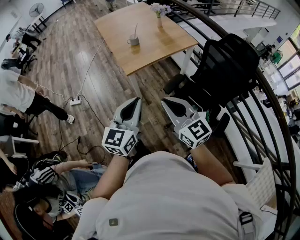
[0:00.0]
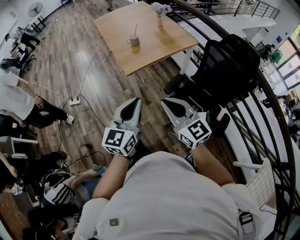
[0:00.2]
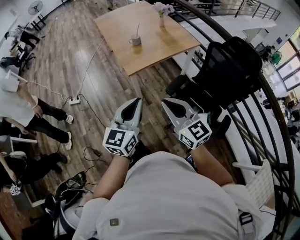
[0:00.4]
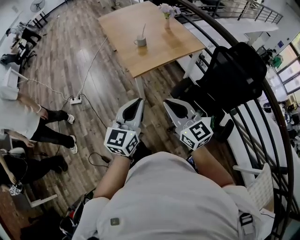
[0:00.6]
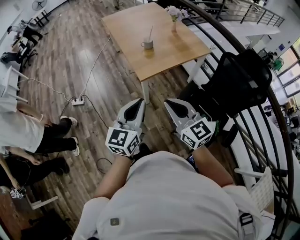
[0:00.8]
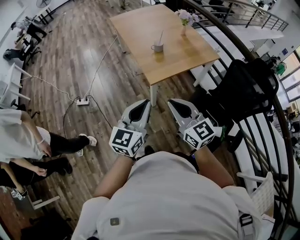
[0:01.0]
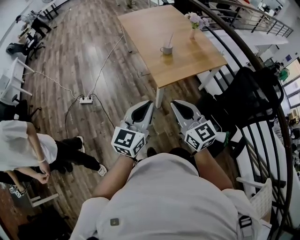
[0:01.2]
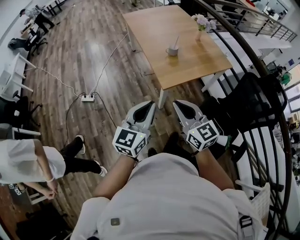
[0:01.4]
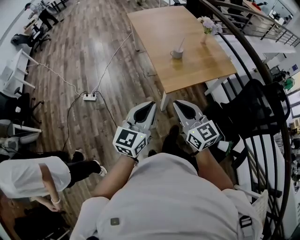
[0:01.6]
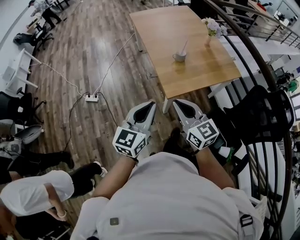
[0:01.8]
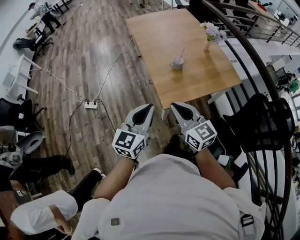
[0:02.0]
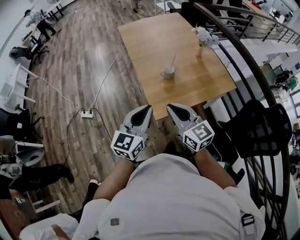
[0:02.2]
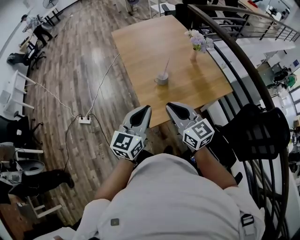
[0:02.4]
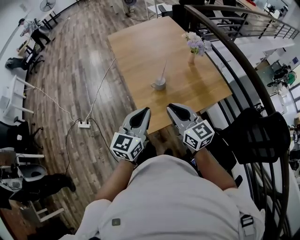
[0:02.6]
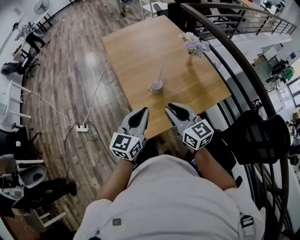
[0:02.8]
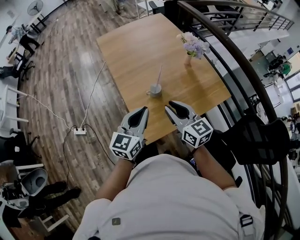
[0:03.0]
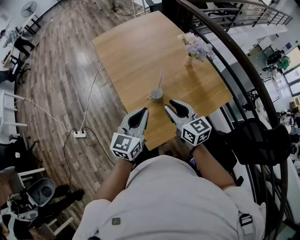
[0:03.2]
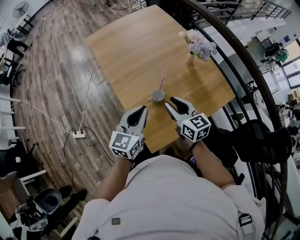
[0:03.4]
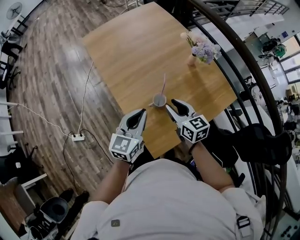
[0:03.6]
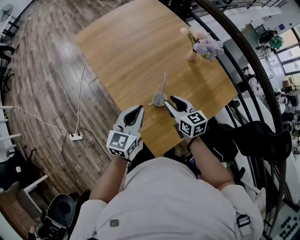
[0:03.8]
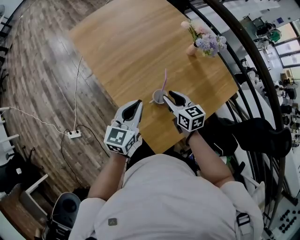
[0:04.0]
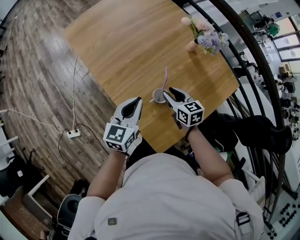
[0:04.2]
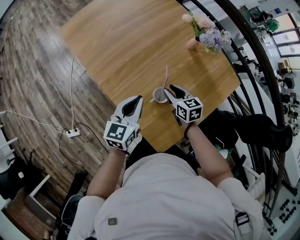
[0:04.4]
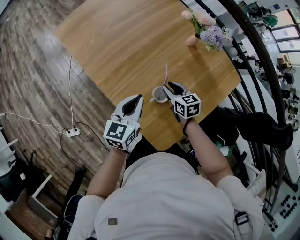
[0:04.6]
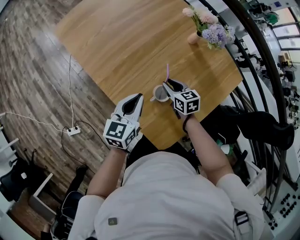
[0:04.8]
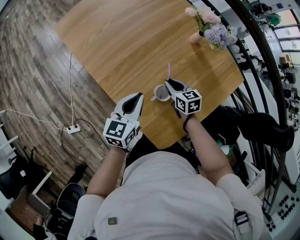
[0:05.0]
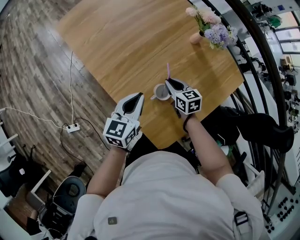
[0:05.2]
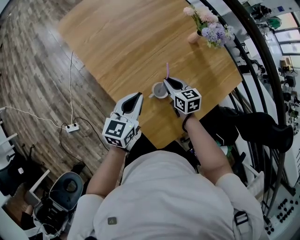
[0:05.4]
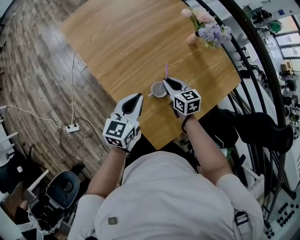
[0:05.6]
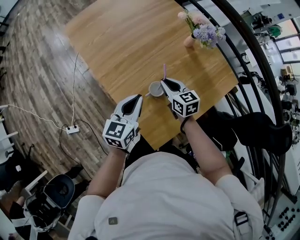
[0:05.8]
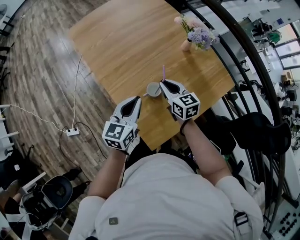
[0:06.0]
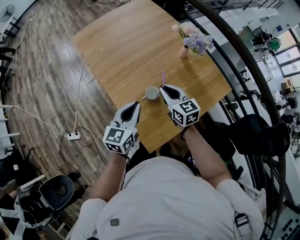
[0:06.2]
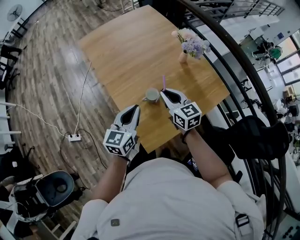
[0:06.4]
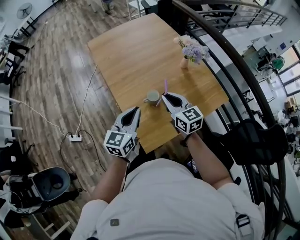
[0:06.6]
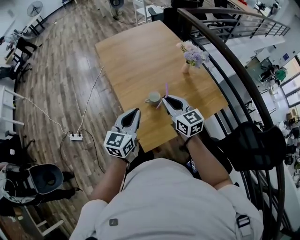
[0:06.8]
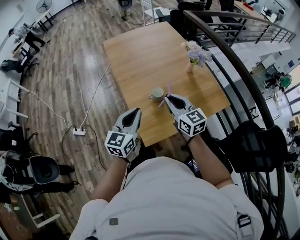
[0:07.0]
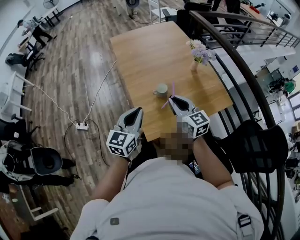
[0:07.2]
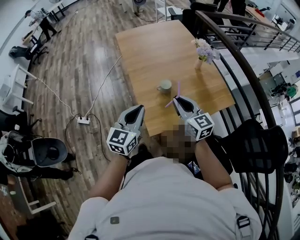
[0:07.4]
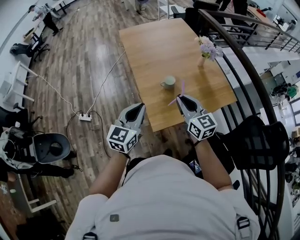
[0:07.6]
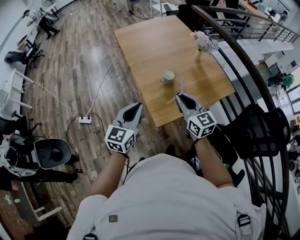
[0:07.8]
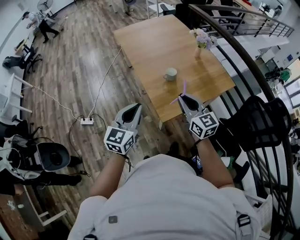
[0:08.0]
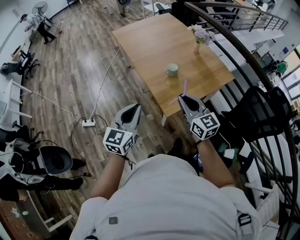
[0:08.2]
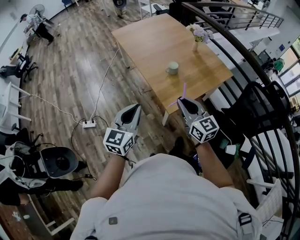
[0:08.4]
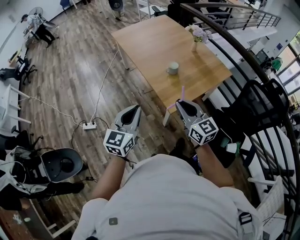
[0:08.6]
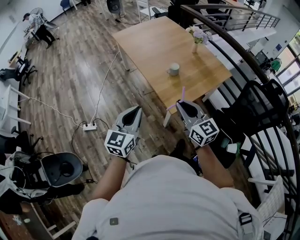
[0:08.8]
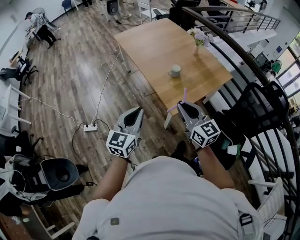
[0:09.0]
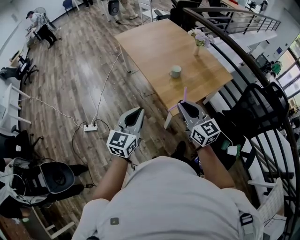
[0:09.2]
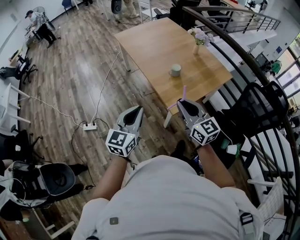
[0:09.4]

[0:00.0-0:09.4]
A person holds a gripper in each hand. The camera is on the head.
0:00.0 to 0:01.6: The two grippers go approximately 30 cm forward and to the left.
0:01.6 to 0:03.2: Both grippers are carried forward, approximately 50 cm. The right gripper opens up.
0:03.2 to 0:04.8: The right gripper goes approximately 35 cm downward and forward, and rotates roughly 30 degrees; the left gripper moves forward and downward, roughly 25 cm, and changes its angle by some 20 degrees.
0:04.8 to 0:06.2: The left gripper goes about 15 cm backward and upward; the right gripper travels upward and backward by roughly 20 cm, and rotates roughly 20 degrees.
0:06.2 to 0:07.8: The left gripper goes roughly 30 cm backward; the right gripper heads backward and upward, covering about 30 cm.
0:07.8 to 0:09.4: The right gripper travels backward and to the left by roughly 20 cm; the left gripper heads to the left and backward, covering approximately 15 cm.

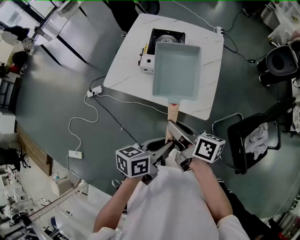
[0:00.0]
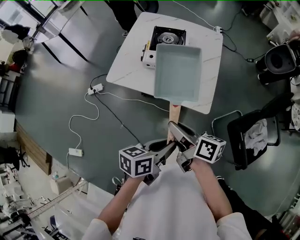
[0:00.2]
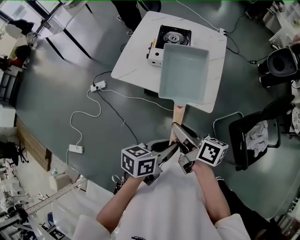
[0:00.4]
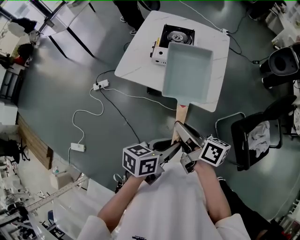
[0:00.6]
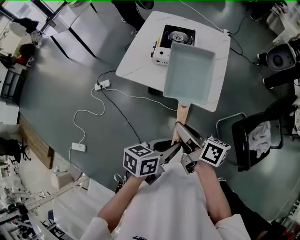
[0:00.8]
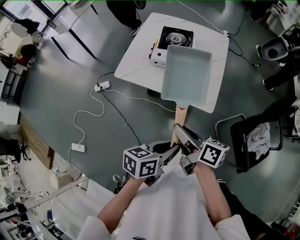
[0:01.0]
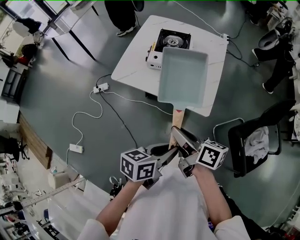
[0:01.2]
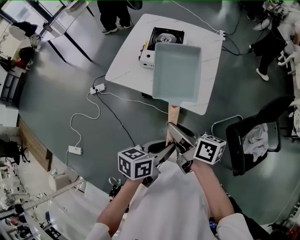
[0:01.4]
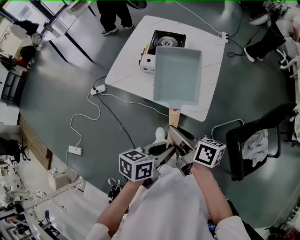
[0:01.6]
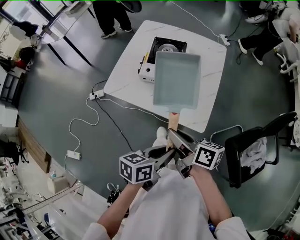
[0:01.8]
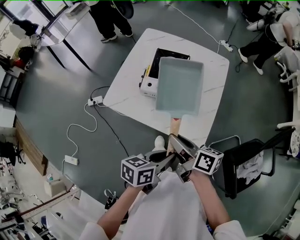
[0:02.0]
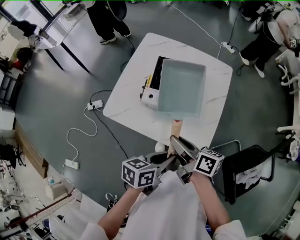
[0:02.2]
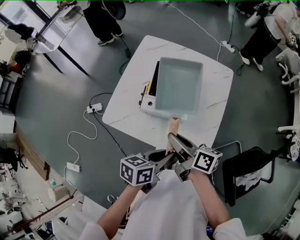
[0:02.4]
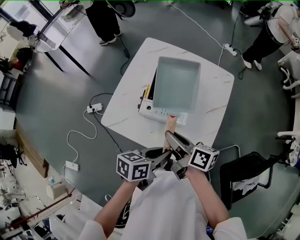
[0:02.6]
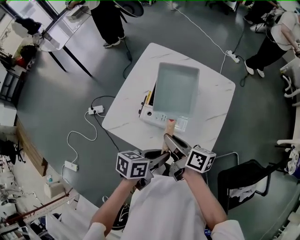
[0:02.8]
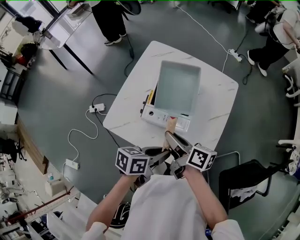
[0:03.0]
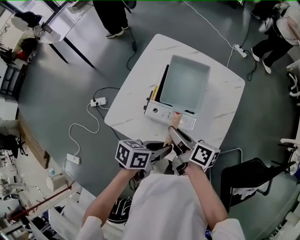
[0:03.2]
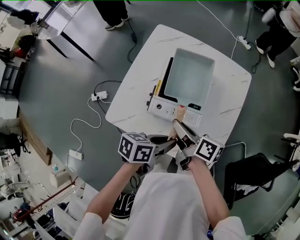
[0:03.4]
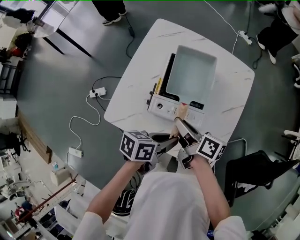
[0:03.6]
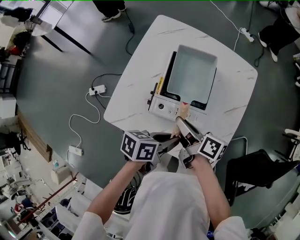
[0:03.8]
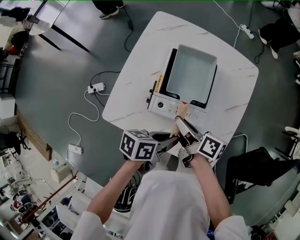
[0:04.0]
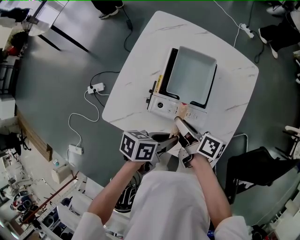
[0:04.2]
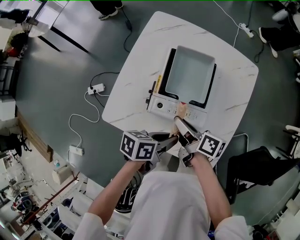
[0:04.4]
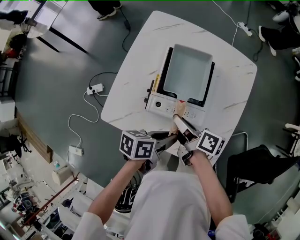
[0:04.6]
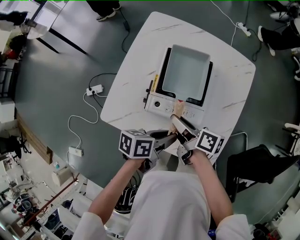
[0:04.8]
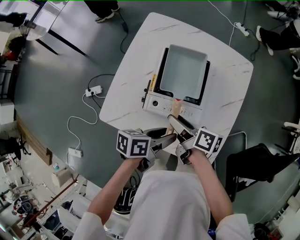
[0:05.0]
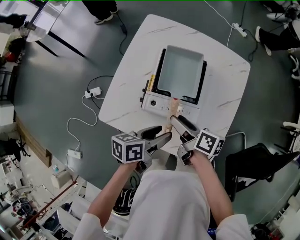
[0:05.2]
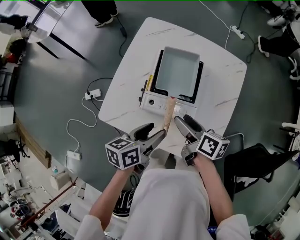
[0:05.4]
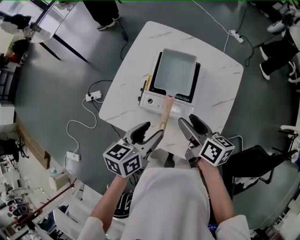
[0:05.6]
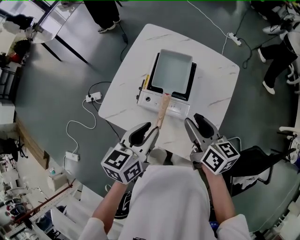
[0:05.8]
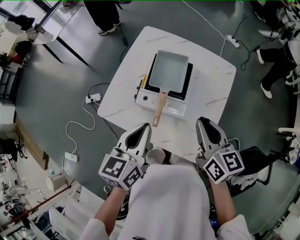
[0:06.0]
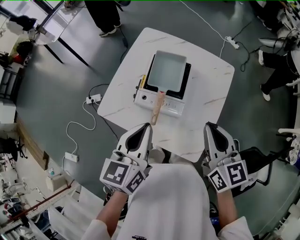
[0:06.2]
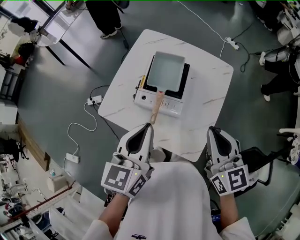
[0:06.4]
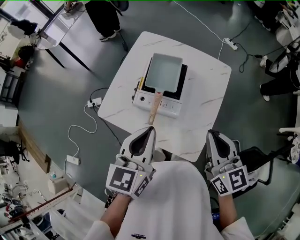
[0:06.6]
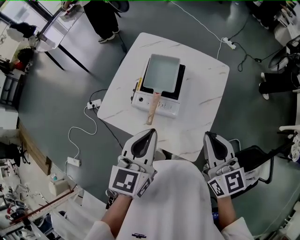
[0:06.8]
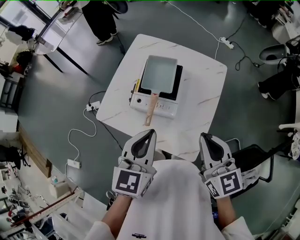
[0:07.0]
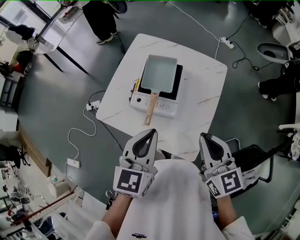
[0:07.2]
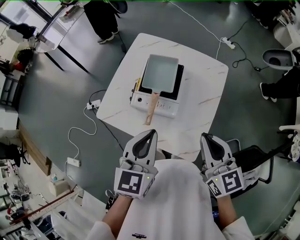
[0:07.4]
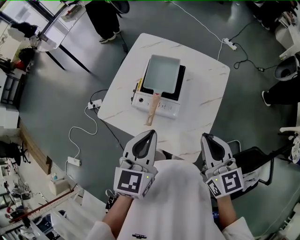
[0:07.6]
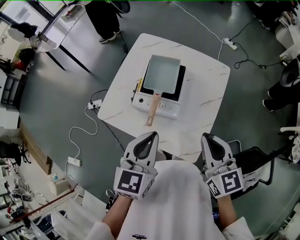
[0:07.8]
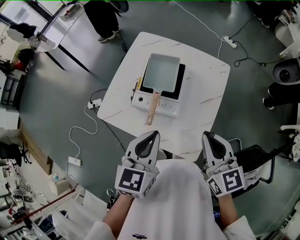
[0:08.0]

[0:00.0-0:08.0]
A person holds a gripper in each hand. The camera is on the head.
0:01.6 to 0:03.2: Both grippers move forward, roughly 30 cm.
0:03.2 to 0:04.8: Both grippers move downward, roughly 10 cm.
0:04.8 to 0:06.4: The left gripper travels upward by roughly 25 cm, turns by about 60 degrees, and closes its fingers. Meanwhile the right gripper heads upward, to the right and backward, covering some 30 cm, twists roughly 60 degrees counterclockwise, seen from behind, and closes up.
0:06.4 to 0:08.0: The left gripper ends up about 5 cm from where it was.

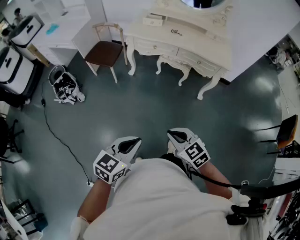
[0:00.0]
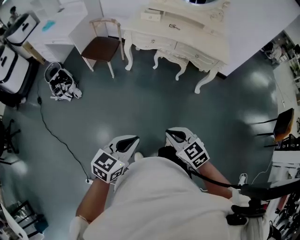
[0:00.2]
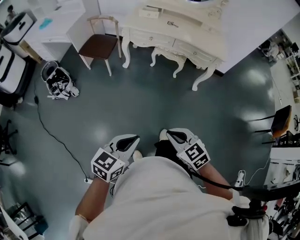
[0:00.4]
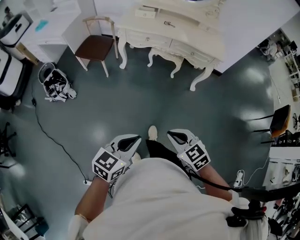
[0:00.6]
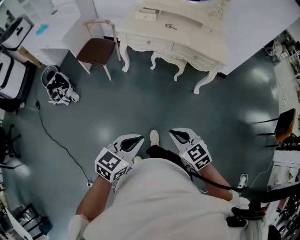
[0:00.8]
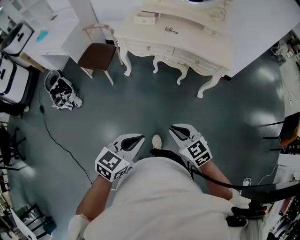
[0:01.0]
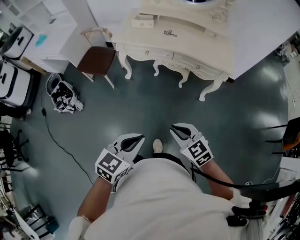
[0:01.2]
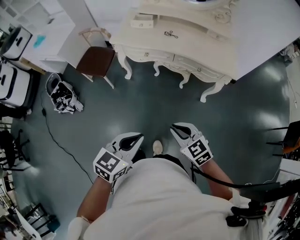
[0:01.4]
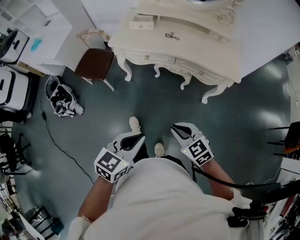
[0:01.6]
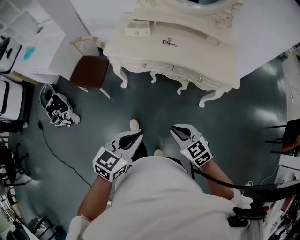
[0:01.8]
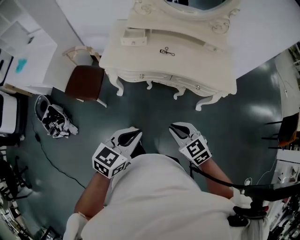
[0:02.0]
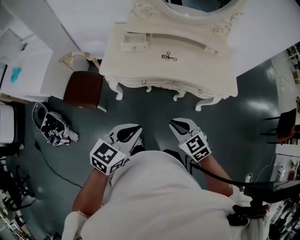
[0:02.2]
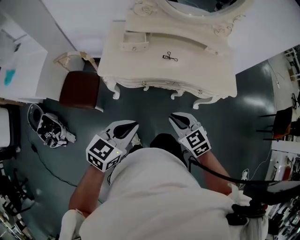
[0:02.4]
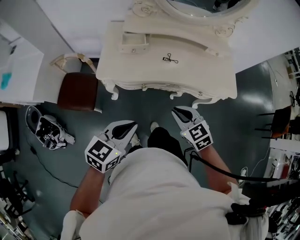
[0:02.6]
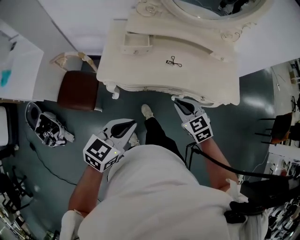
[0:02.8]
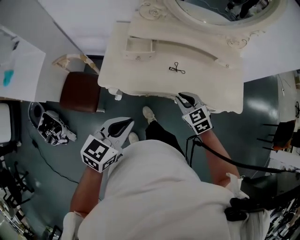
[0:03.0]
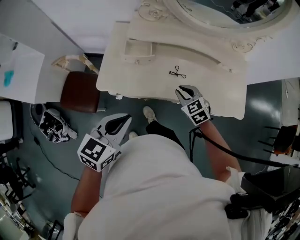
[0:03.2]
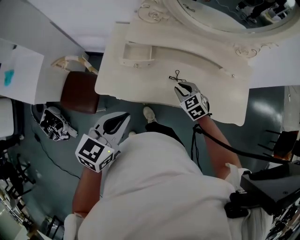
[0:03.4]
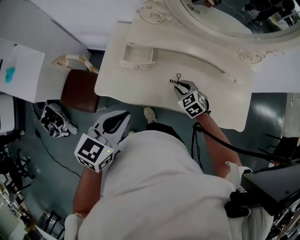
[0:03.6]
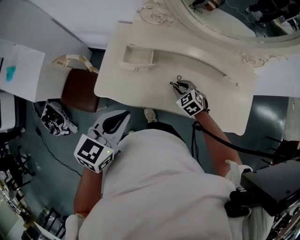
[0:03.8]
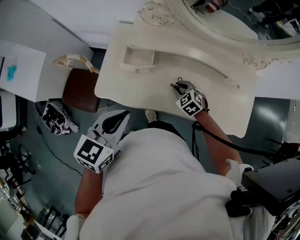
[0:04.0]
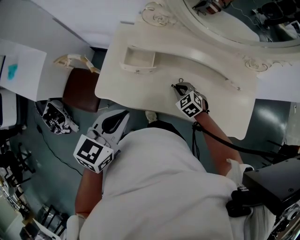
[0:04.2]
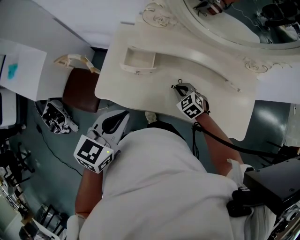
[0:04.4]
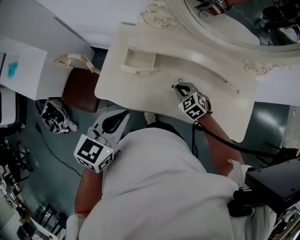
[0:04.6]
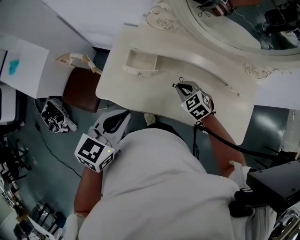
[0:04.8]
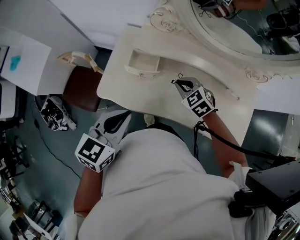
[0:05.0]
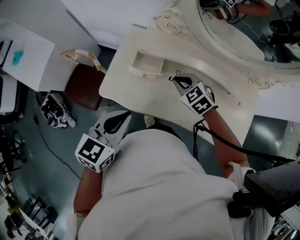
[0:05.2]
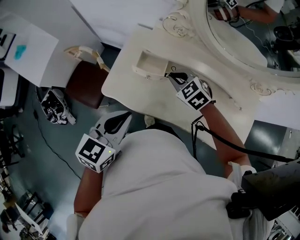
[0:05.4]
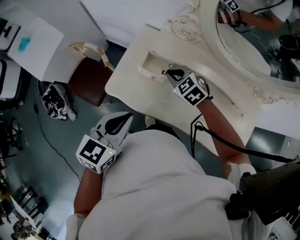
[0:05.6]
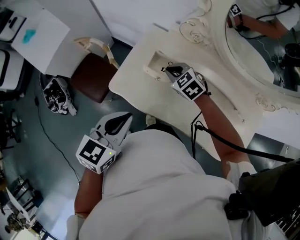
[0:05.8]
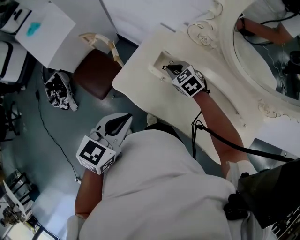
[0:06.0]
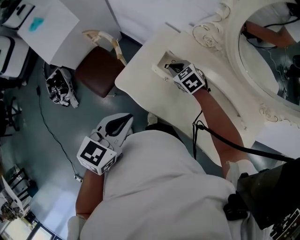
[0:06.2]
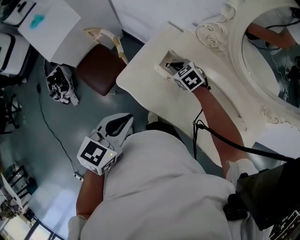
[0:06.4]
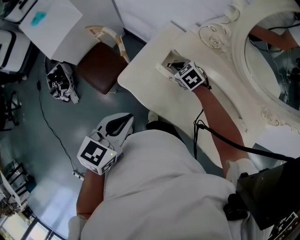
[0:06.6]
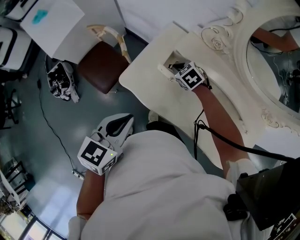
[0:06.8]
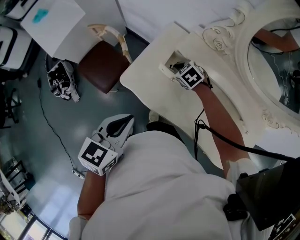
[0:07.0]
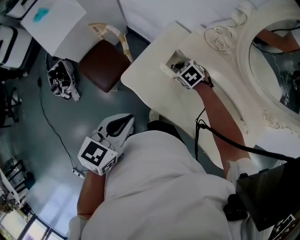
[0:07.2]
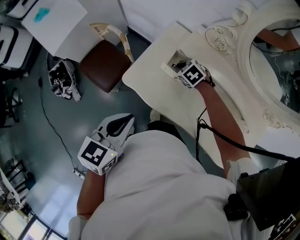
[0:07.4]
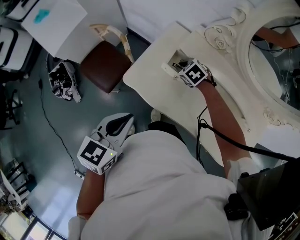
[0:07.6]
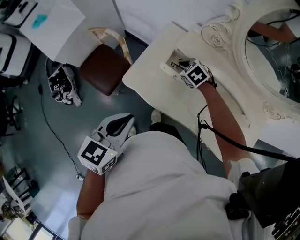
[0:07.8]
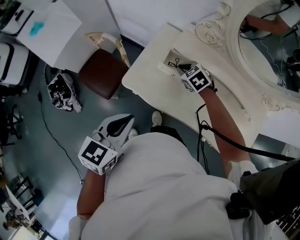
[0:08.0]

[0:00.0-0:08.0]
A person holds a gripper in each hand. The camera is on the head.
0:00.0 to 0:01.6: The two grippers go about 30 cm forward.
0:01.6 to 0:03.2: The pair of grippers is taken forward, about 50 cm.
0:03.2 to 0:04.8: The two grippers go approximately 10 cm forward.
0:04.8 to 0:06.4: The left gripper goes some 10 cm to the left; the right gripper shifts about 25 cm to the left and forward.
0:06.4 to 0:08.0: The grippers make only small movements.
